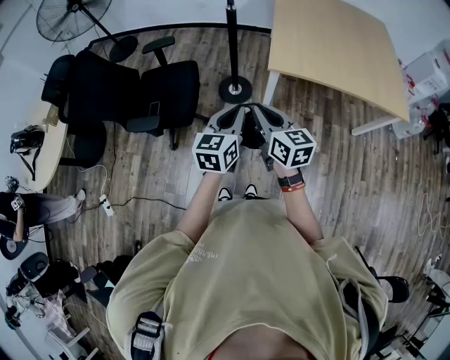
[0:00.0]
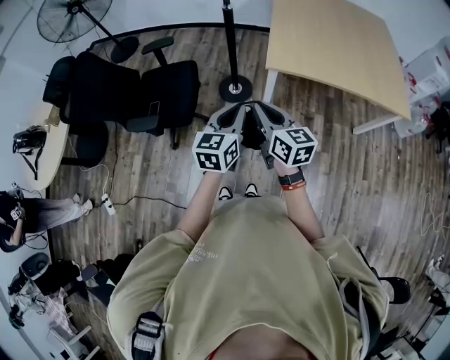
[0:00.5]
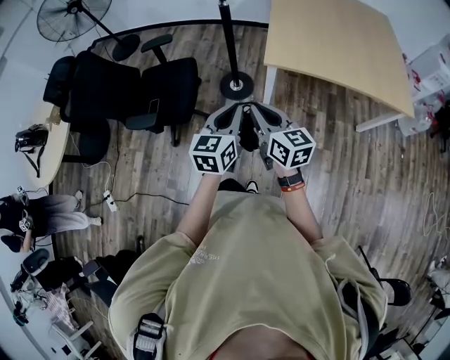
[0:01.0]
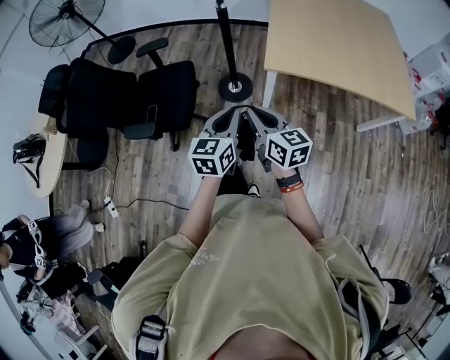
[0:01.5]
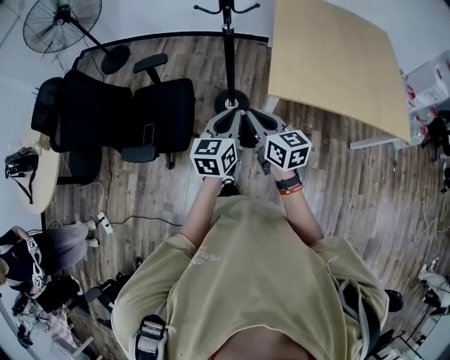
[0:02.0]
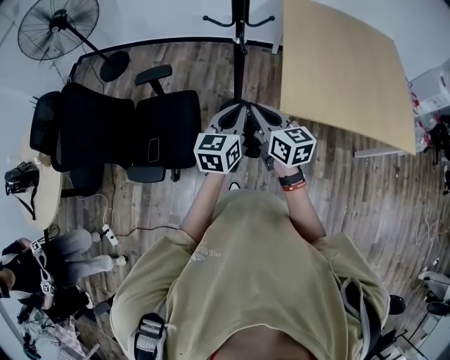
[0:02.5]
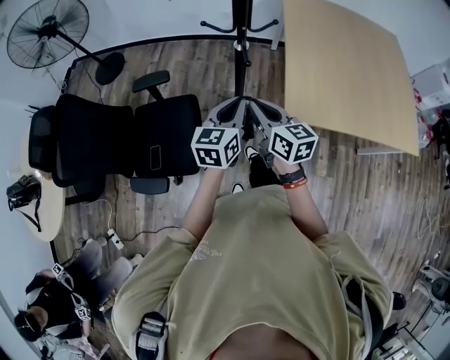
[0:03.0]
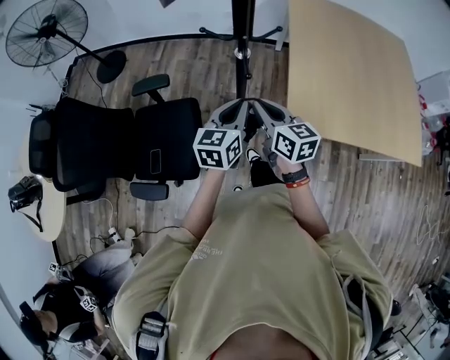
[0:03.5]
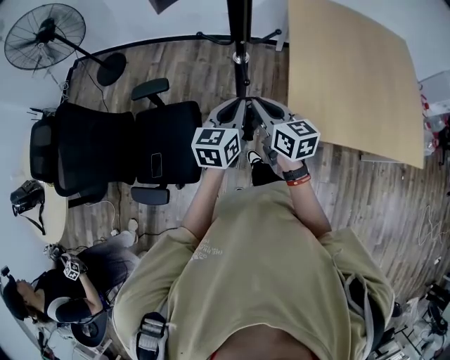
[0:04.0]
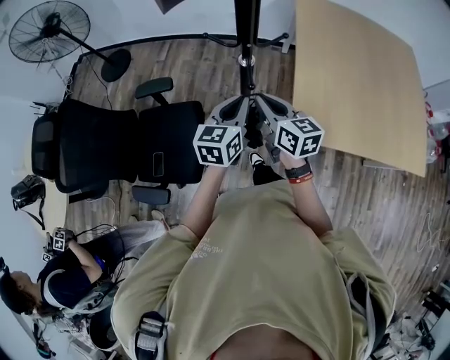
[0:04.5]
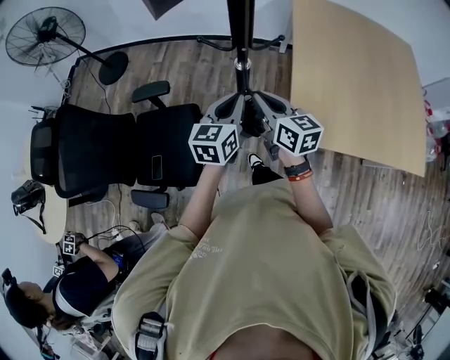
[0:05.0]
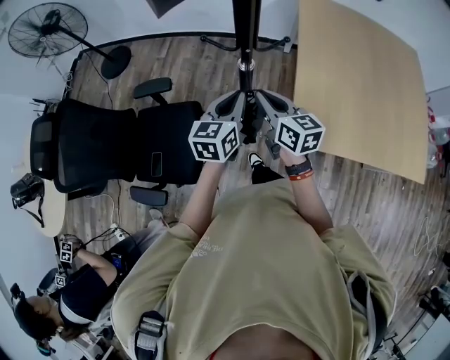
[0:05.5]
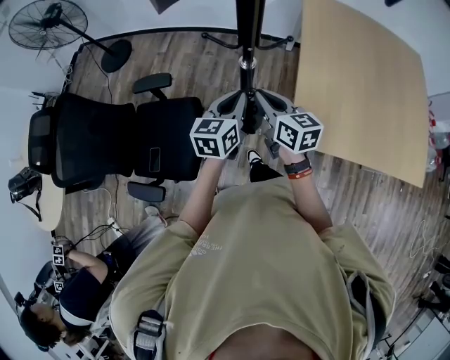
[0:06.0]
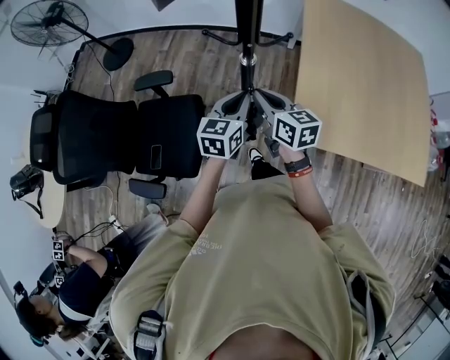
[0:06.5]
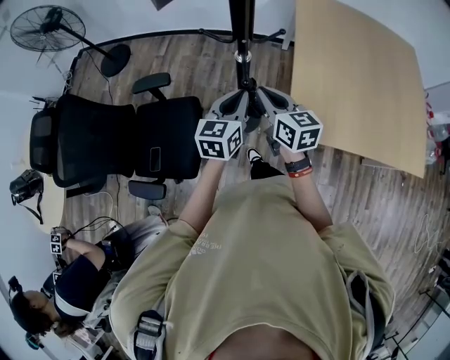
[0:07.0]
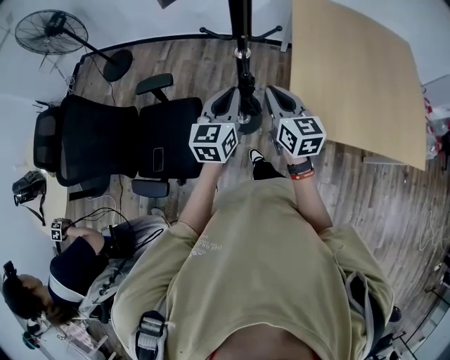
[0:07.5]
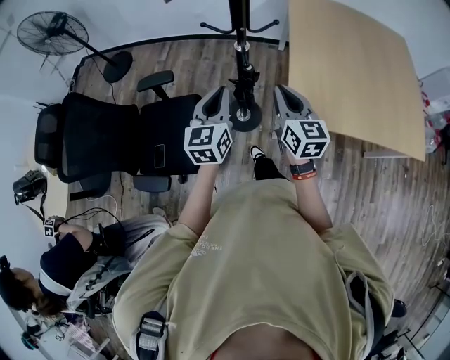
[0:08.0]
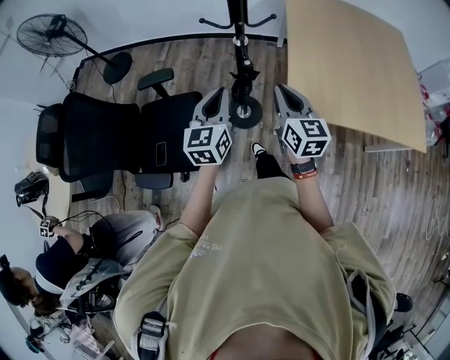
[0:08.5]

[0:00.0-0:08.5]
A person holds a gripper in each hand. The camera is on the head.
0:00.0 to 0:02.0: The grippers both shift forward by about 20 cm.
0:02.0 to 0:04.0: The grippers both shift forward by roughly 35 cm.
0:04.0 to 0:06.5: Both grippers move forward, some 5 cm.
0:06.5 to 0:08.5: The right gripper heads backward, covering roughly 15 cm, and swivels some 30 degrees, while the left gripper goes about 20 cm backward, to the left and upward.

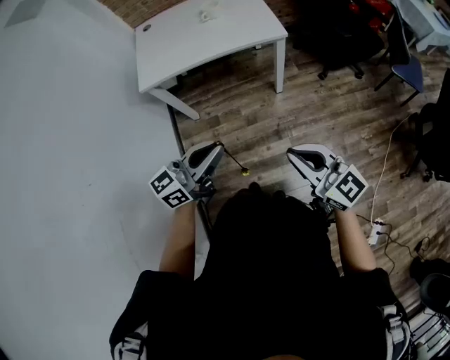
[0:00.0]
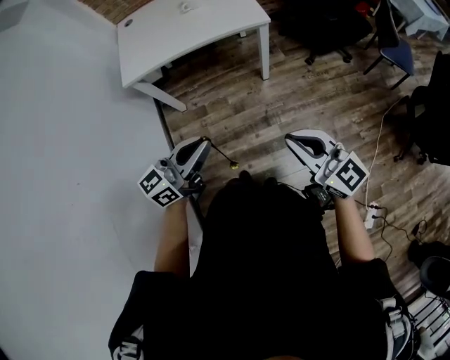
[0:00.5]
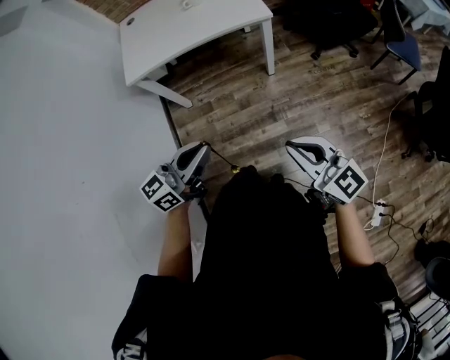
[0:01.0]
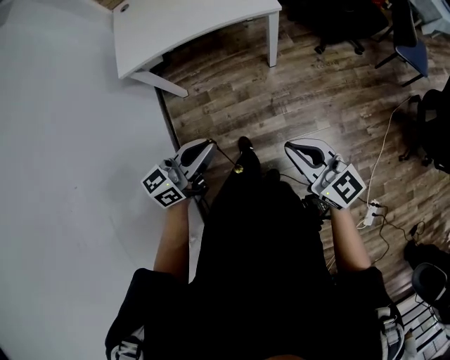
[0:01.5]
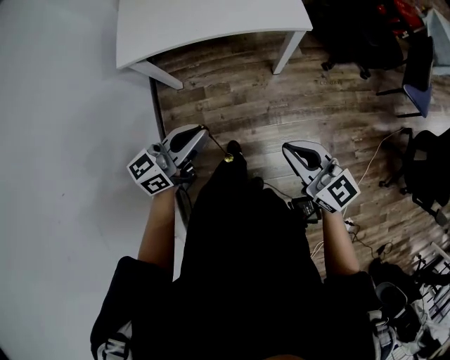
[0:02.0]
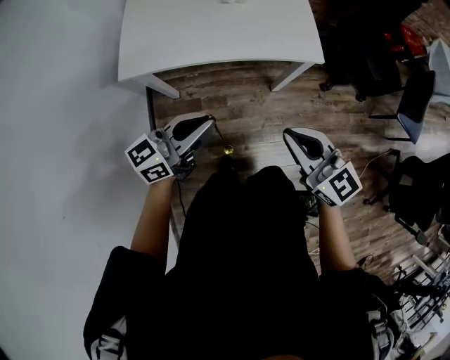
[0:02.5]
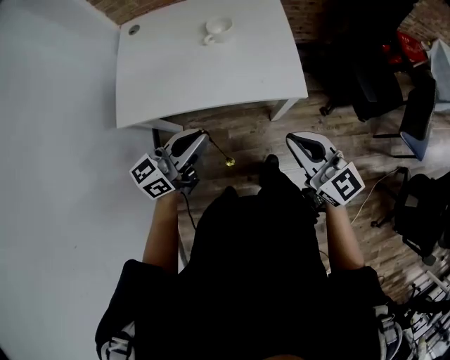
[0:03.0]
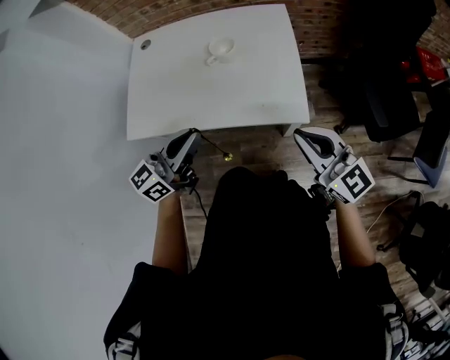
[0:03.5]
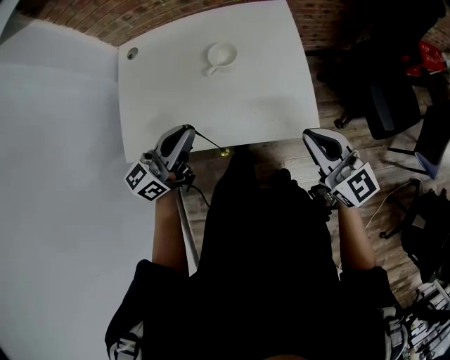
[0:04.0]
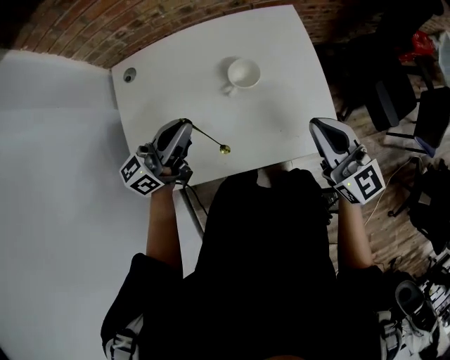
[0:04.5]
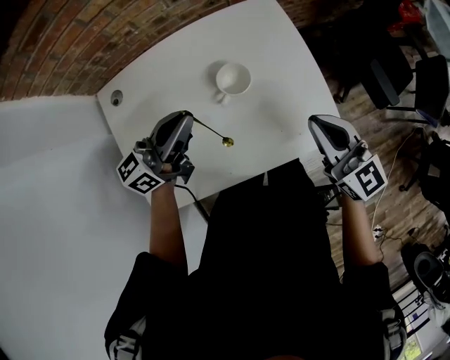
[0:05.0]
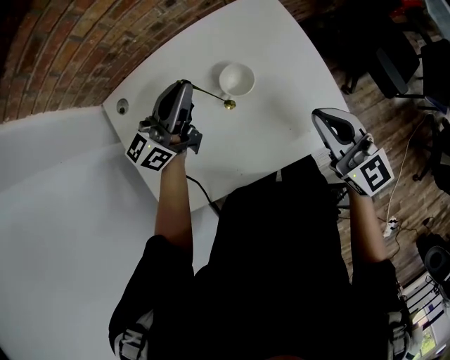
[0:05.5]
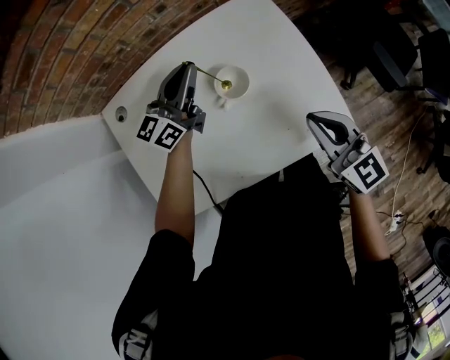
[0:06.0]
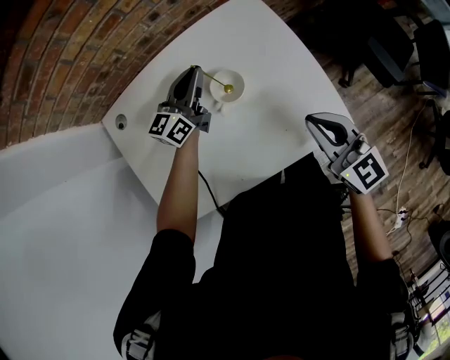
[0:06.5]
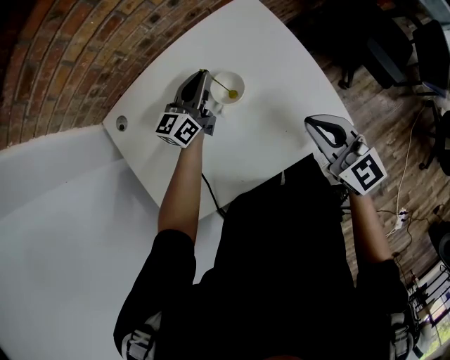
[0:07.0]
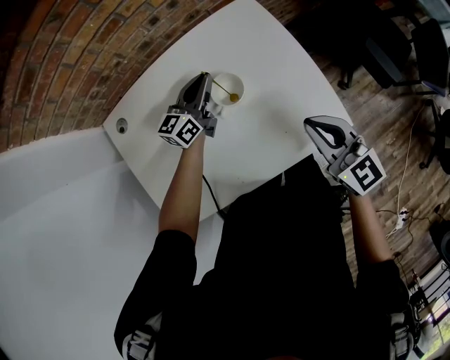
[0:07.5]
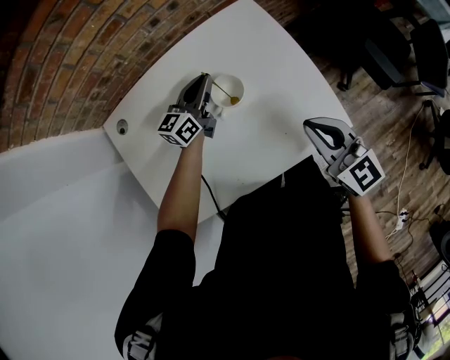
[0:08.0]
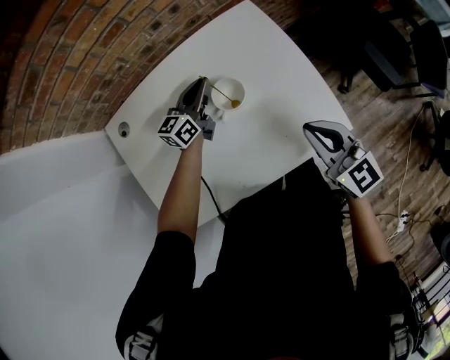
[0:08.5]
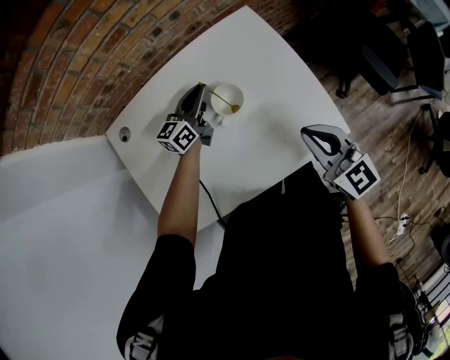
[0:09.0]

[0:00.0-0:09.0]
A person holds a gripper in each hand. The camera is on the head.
0:00.0 to 0:02.0: The two grippers go roughly 15 cm forward and downward.
0:02.0 to 0:04.5: The pair of grippers is taken forward, roughly 50 cm.
0:04.5 to 0:07.0: The left gripper moves forward, downward and to the right, approximately 25 cm. Meanwhile the right gripper shifts roughly 10 cm downward.
0:07.0 to 0:09.0: The grippers stay close to where they were, moving slightly.

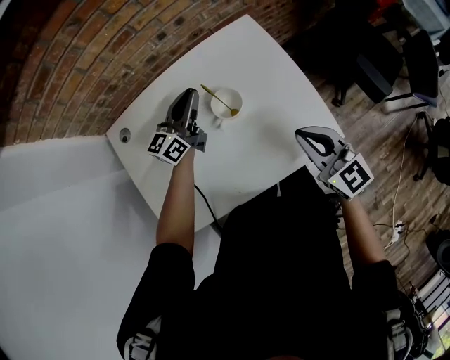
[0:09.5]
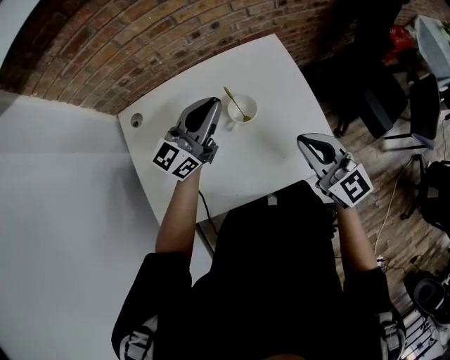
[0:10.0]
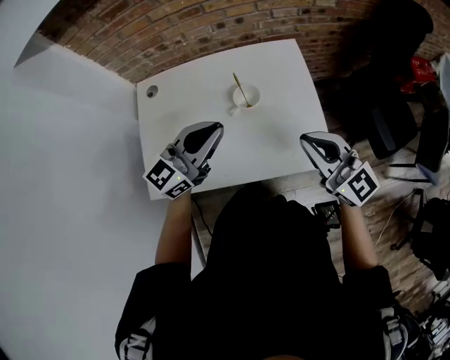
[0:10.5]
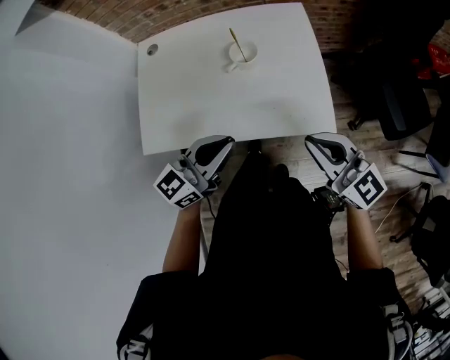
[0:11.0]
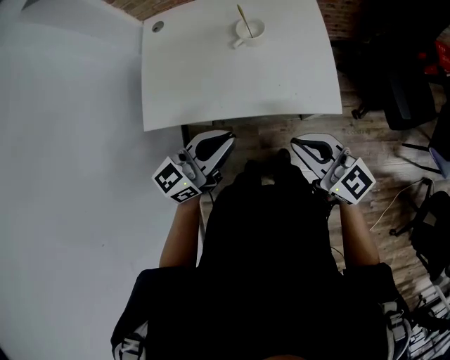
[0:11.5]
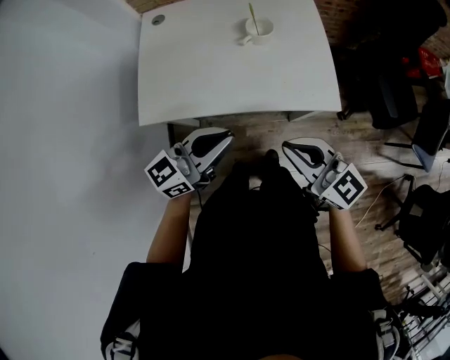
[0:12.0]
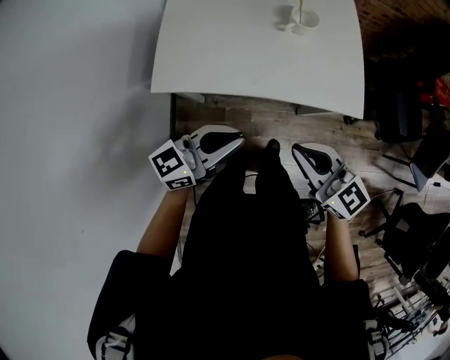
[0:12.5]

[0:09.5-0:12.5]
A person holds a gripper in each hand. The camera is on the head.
0:09.5 to 0:11.0: The right gripper goes approximately 15 cm backward and upward, and turns by about 30 degrees. Meanwhile the left gripper is displaced backward by approximately 35 cm.
0:11.0 to 0:12.5: Both grippers travel together to the left and backward, about 20 cm.

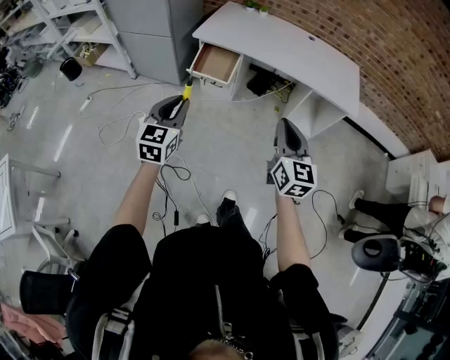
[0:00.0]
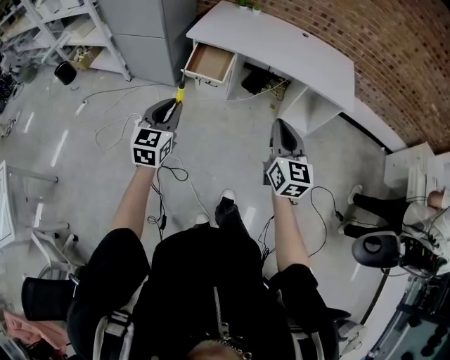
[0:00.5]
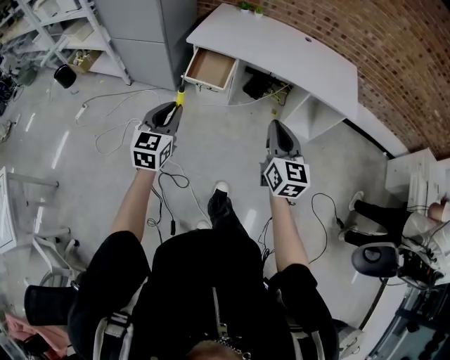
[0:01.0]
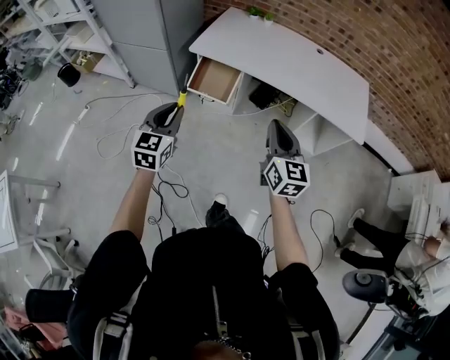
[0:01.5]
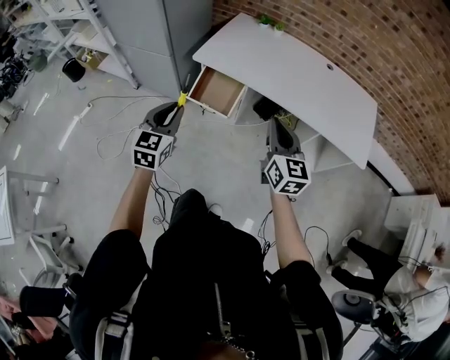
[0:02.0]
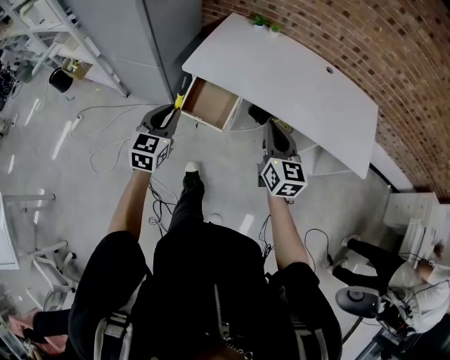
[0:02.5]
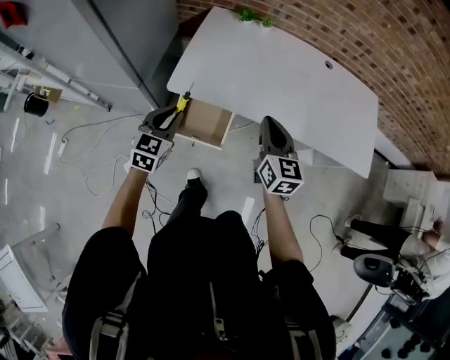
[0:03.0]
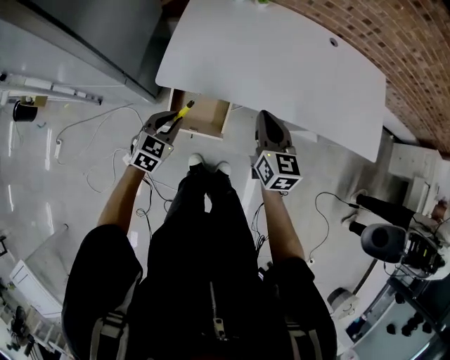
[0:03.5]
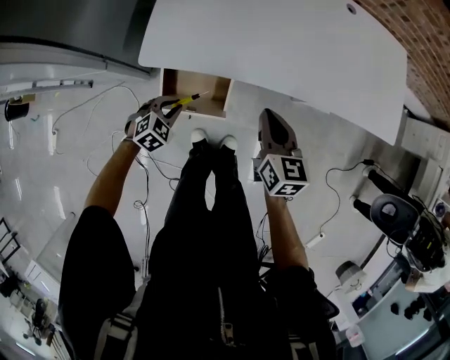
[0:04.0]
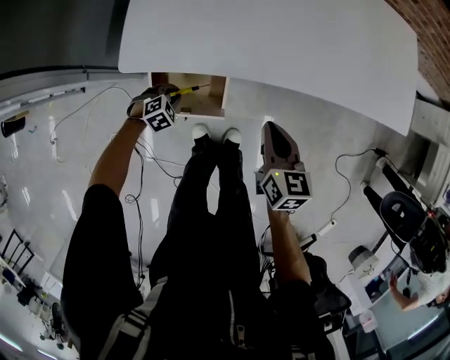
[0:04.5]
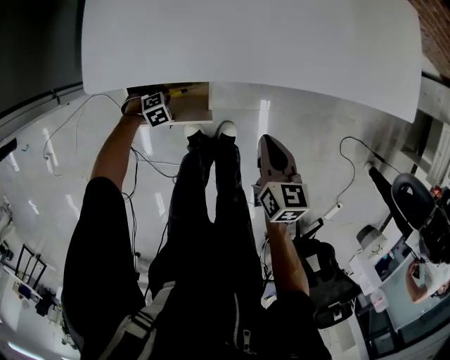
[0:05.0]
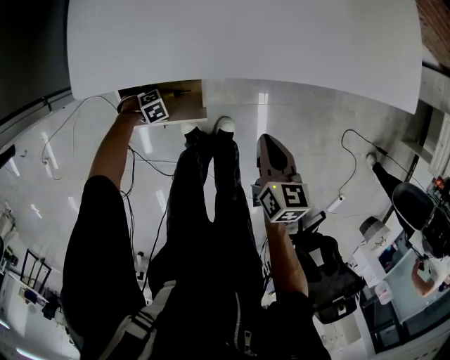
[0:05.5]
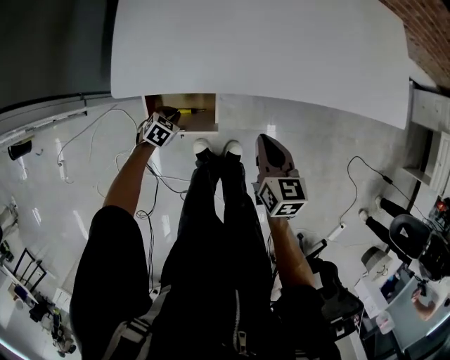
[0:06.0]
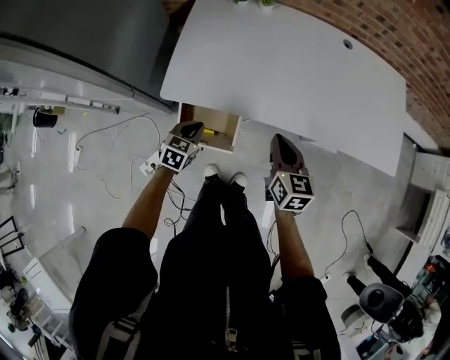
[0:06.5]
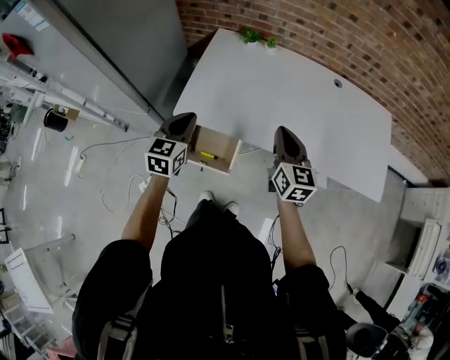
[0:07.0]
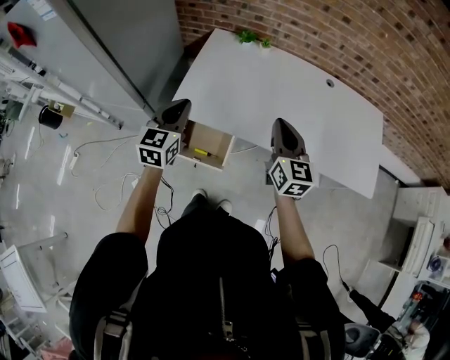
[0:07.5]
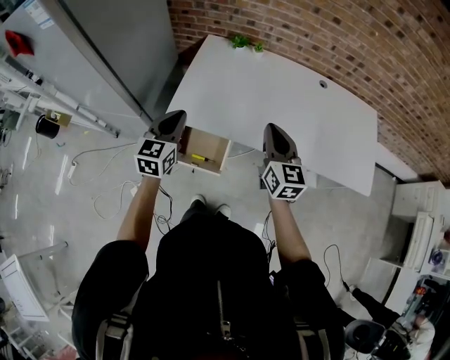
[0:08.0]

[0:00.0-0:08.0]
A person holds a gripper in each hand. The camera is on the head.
0:00.0 to 0:02.0: Both grippers travel together forward, approximately 25 cm.
0:02.0 to 0:04.0: The right gripper shifts by approximately 35 cm, and changes its angle by approximately 30 degrees; the left gripper heads downward, covering some 35 cm, and tips its fingers downward by about 40 degrees.
0:04.0 to 0:06.0: The right gripper is displaced downward by about 10 cm, while the left gripper heads downward, covering approximately 15 cm.
0:06.0 to 0:08.0: The right gripper goes roughly 25 cm upward, and changes its angle by about 30 degrees. The left gripper goes approximately 50 cm upward, and points its fingers roughly 50 degrees further upward.
